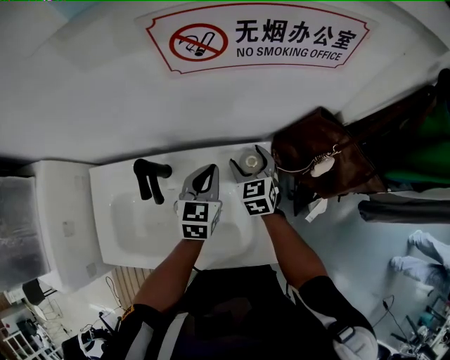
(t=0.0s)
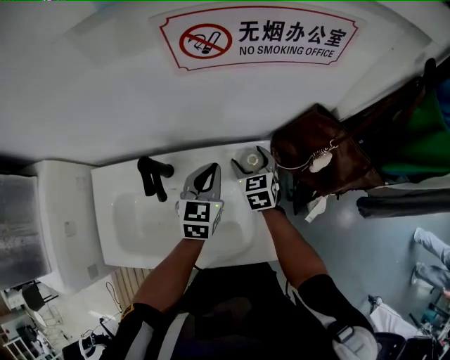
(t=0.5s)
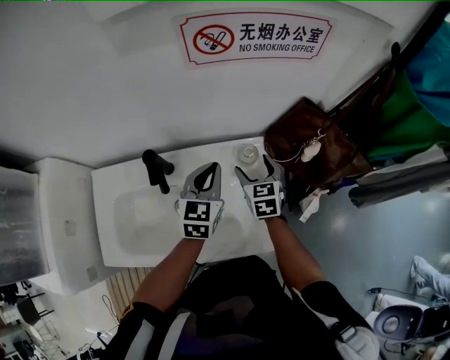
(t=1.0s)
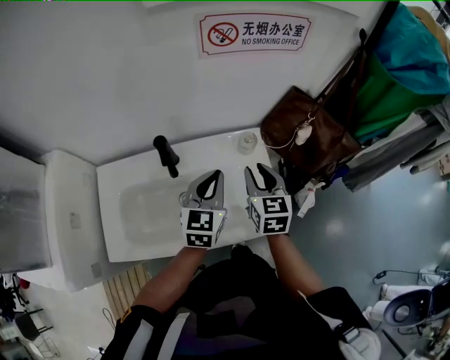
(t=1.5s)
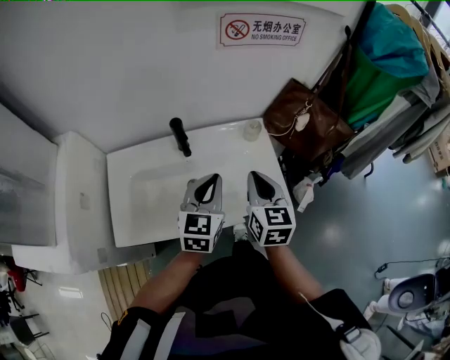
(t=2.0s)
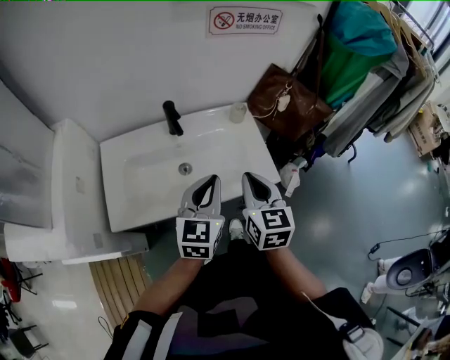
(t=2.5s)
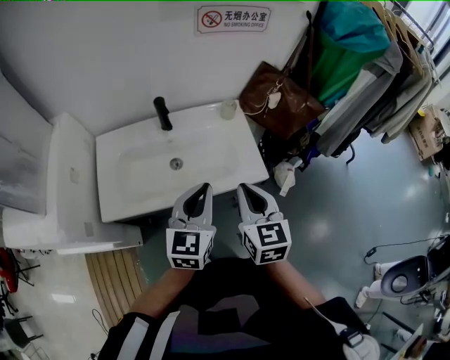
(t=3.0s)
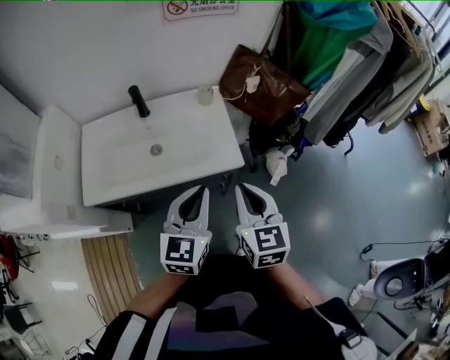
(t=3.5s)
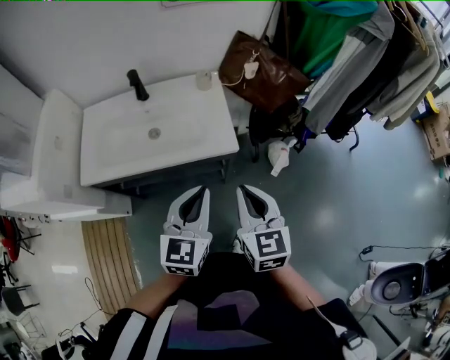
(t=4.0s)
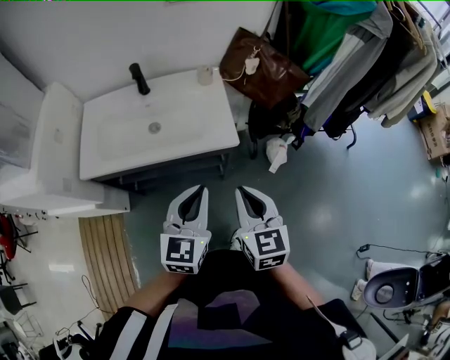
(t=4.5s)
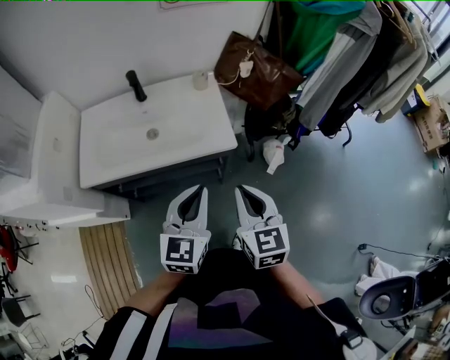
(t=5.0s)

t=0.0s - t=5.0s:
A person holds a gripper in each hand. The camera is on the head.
t=0.0s - t=2.5s: The two grippers go about 40 cm backward and upward. The left gripper swivels roughly 20 degrees, while the right gripper changes its angle by roughly 20 degrees, and closes up.
t=2.5s - t=5.0s: The left gripper heads to the right and backward, covering about 20 cm. The right gripper travels backward and to the right by roughly 25 cm.

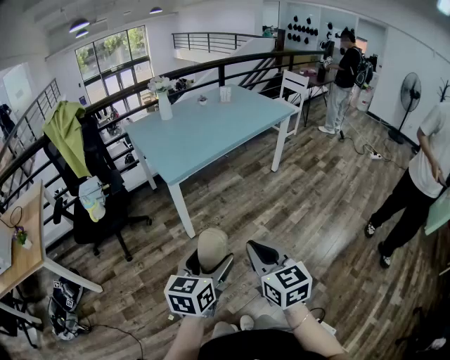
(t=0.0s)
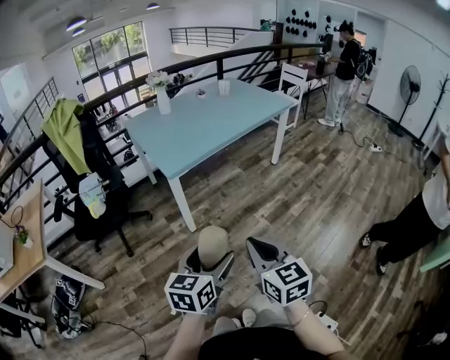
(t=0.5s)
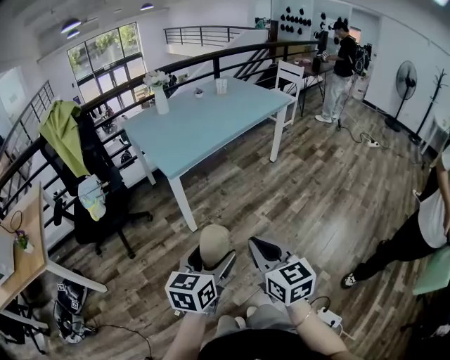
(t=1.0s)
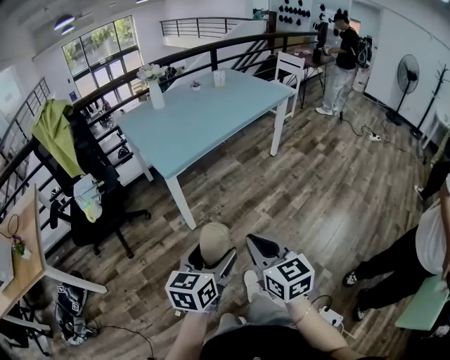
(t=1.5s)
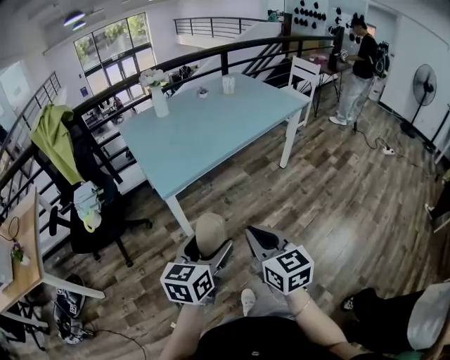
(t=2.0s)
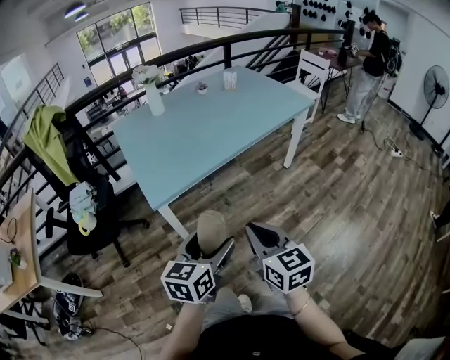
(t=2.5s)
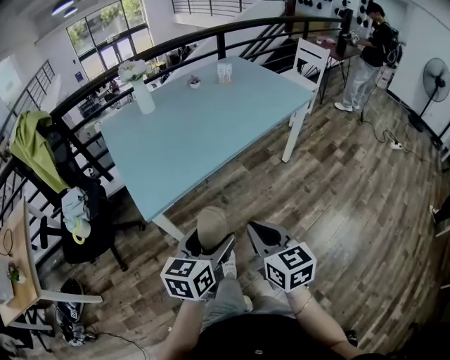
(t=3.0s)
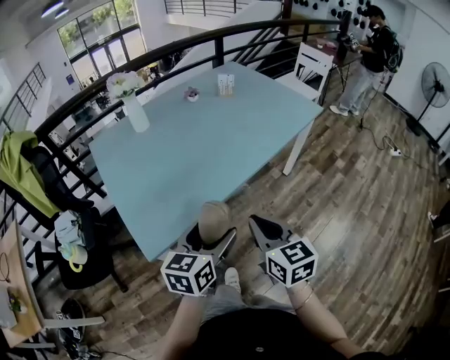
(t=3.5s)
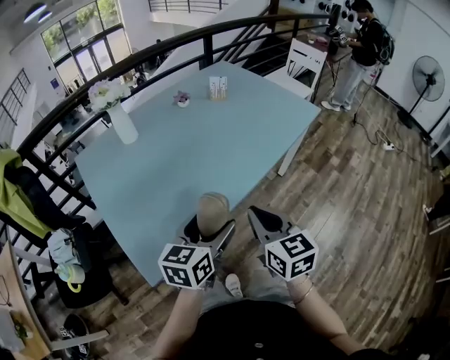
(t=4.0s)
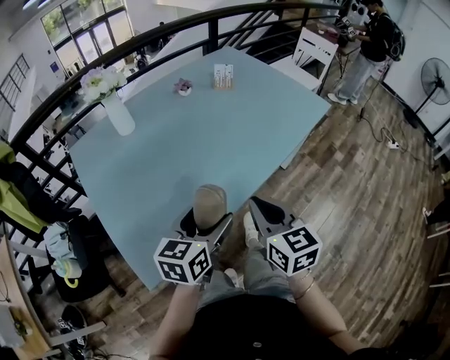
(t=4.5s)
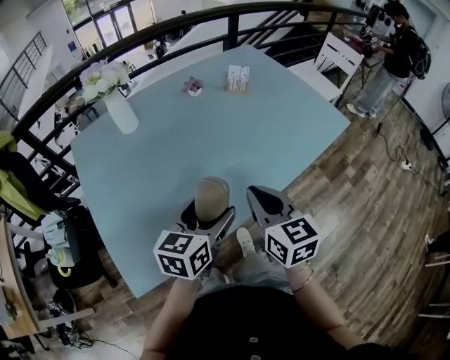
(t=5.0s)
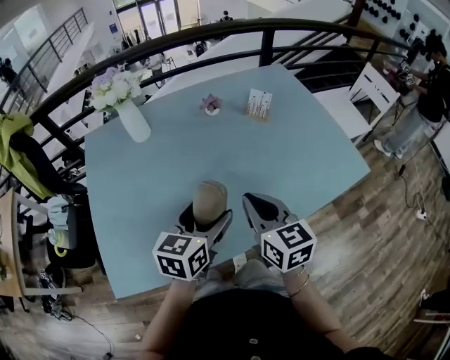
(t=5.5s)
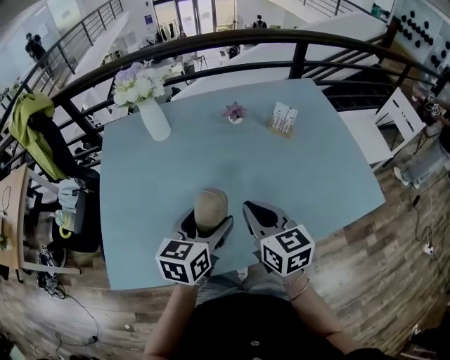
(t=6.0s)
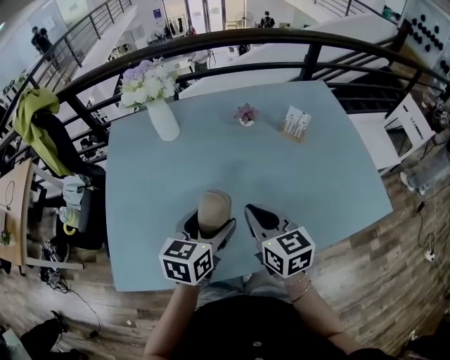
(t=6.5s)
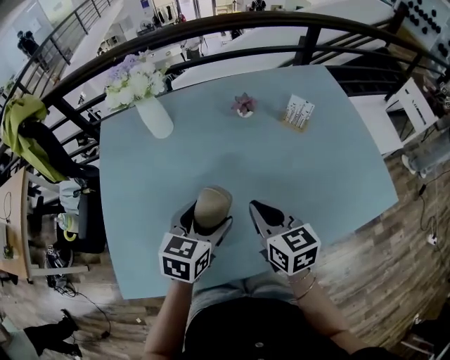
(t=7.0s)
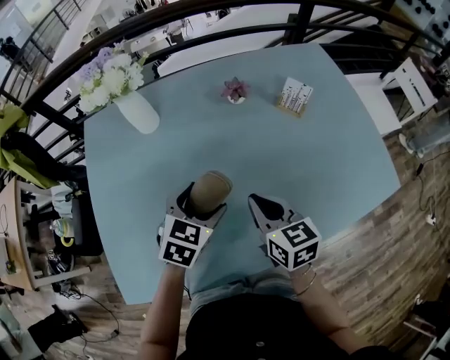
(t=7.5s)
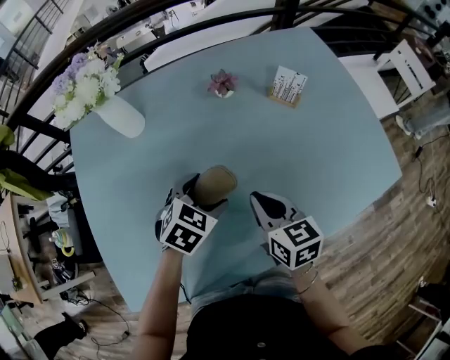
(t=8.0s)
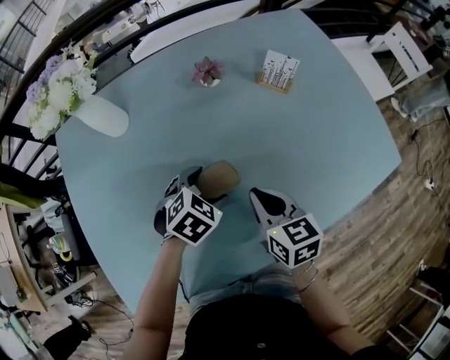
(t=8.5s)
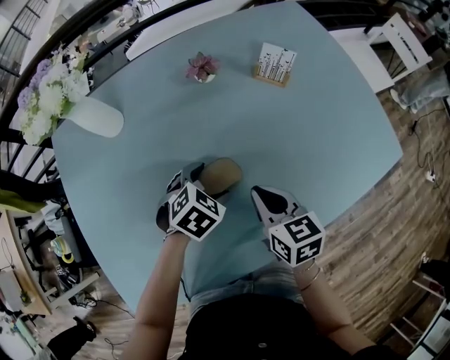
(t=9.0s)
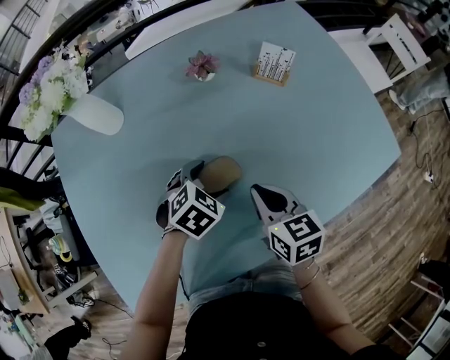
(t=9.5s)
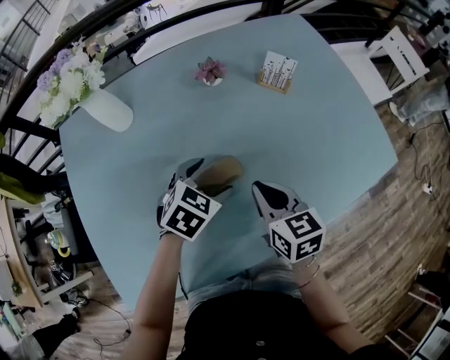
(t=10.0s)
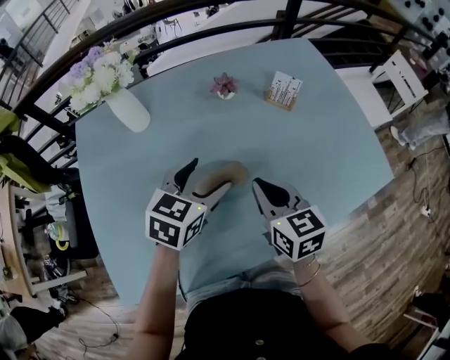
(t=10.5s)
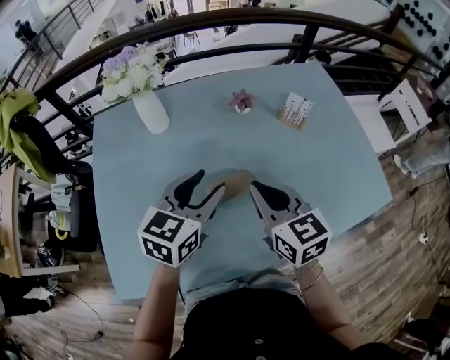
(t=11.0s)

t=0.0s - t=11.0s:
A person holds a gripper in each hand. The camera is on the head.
t=0.0s - t=2.0s: The grippers both shift forward by roughly 20 cm.
t=2.0s - t=3.5s: Both grippers move forward, approximately 35 cm.
t=3.5s - t=5.5s: The two grippers go some 35 cm forward.
t=5.5s - t=7.5s: The left gripper shifts some 15 cm forward, downward and to the left, and swivels some 30 degrees. Meanwhile the right gripper is displaced forward and downward by some 15 cm.
t=7.5s - t=9.0s: The right gripper shifts some 5 cm downward. The left gripper is displaced downward and to the right by some 10 cm, and changes its angle by approximately 30 degrees.
t=9.0s - t=11.0s: The right gripper goes approximately 15 cm upward and to the left, and rotates some 20 degrees. Meanwhile the left gripper moves upward, approximately 20 cm, points its fingers about 40 degrees further upward, and closes its fingers.

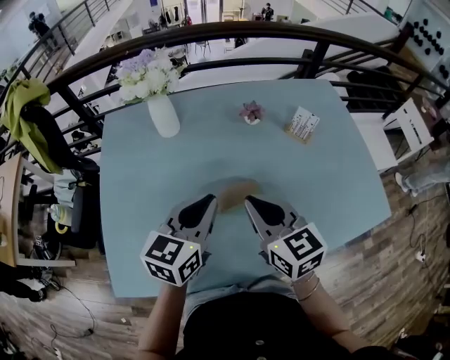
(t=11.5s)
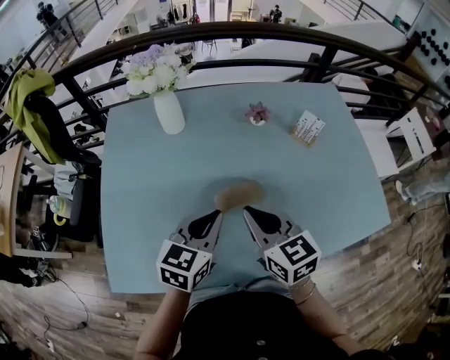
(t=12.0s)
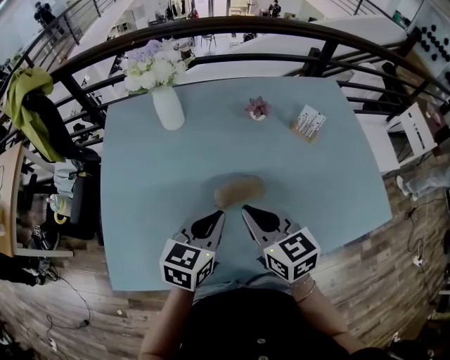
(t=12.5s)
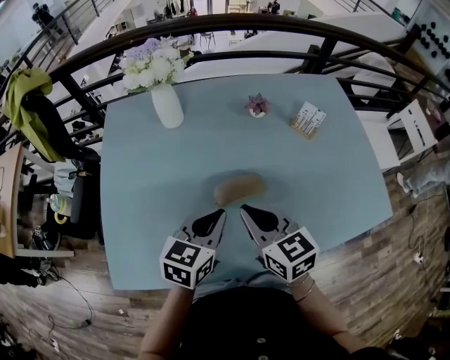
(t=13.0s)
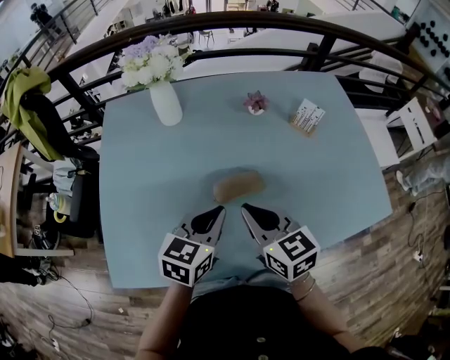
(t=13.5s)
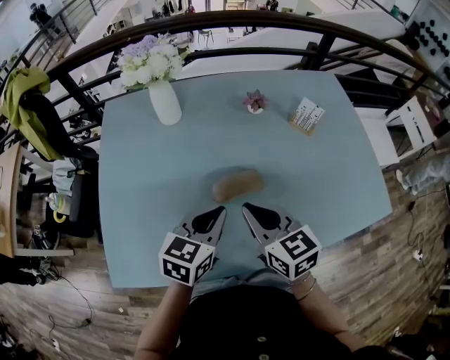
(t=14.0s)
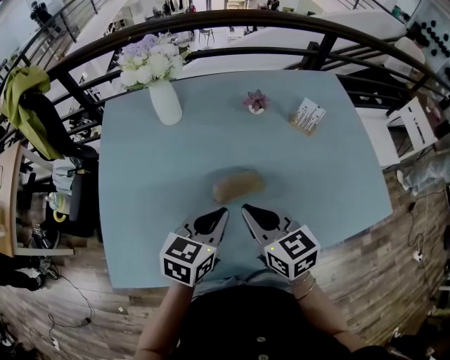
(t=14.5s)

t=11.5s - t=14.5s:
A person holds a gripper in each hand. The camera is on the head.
t=11.5s - t=13.0s: The right gripper shifts by roughly 5 cm; the left gripper heads downward, covering some 5 cm.
t=13.0s - t=14.5s: Neither gripper changes place.

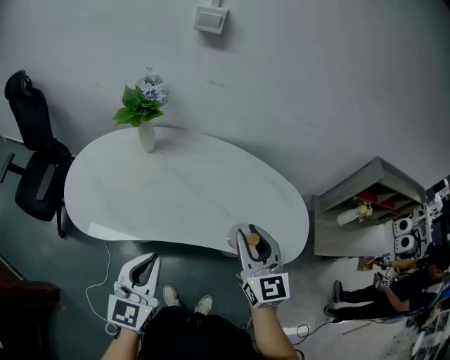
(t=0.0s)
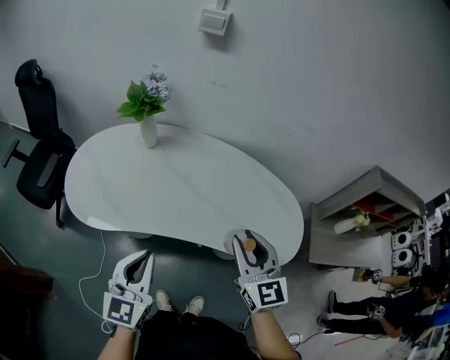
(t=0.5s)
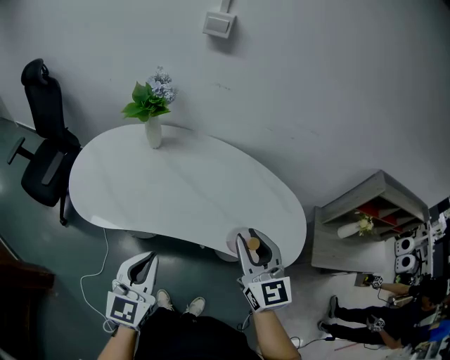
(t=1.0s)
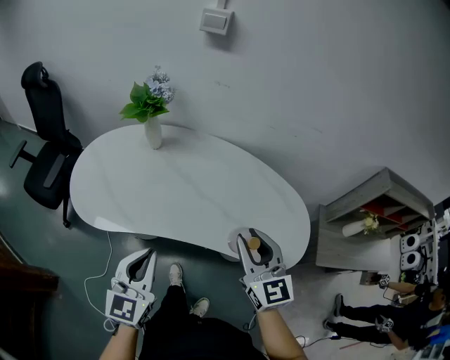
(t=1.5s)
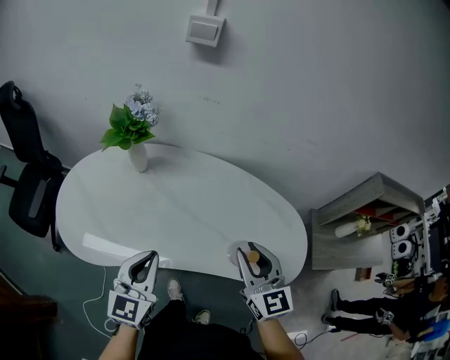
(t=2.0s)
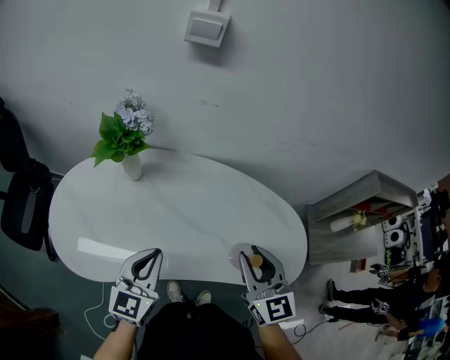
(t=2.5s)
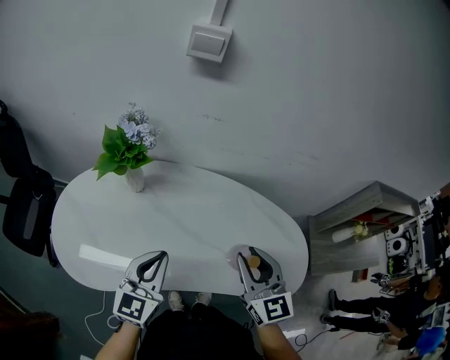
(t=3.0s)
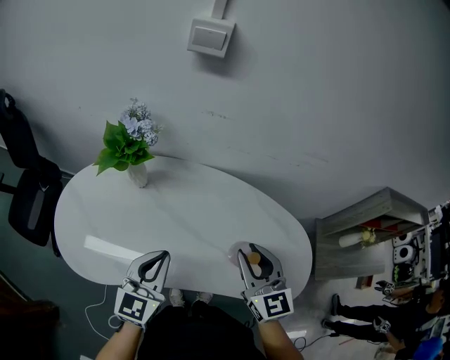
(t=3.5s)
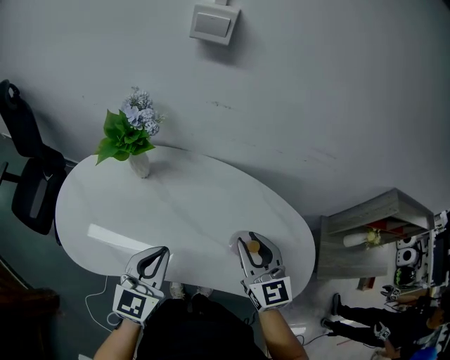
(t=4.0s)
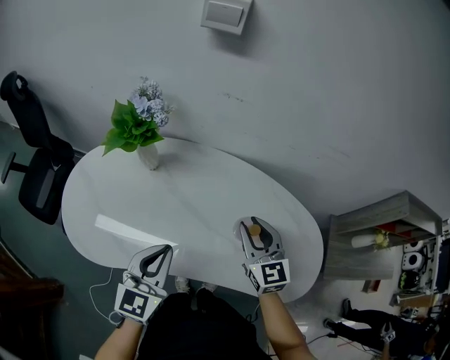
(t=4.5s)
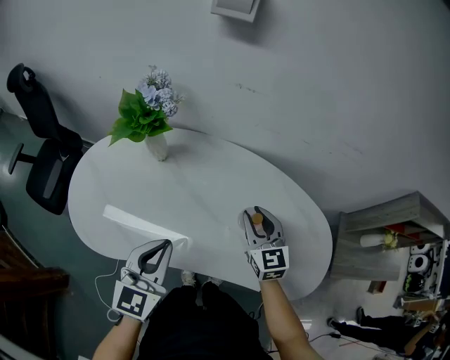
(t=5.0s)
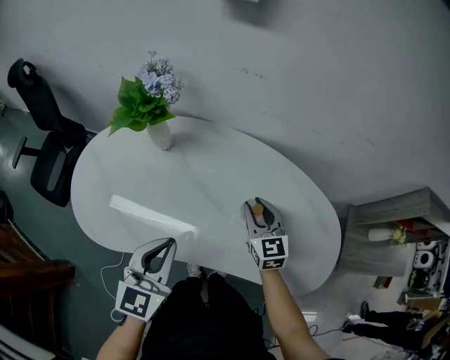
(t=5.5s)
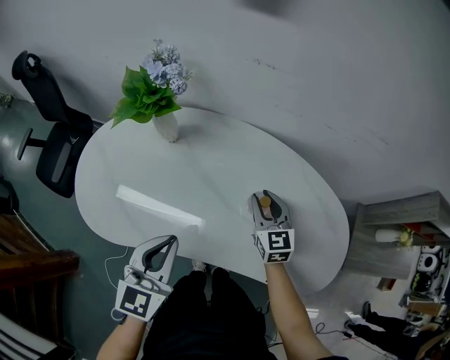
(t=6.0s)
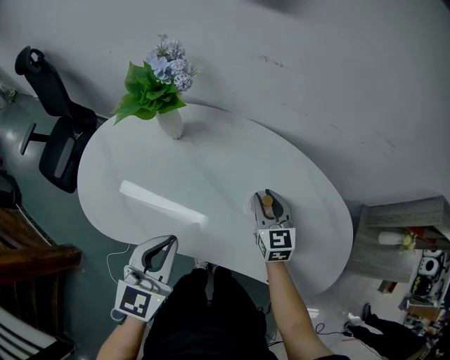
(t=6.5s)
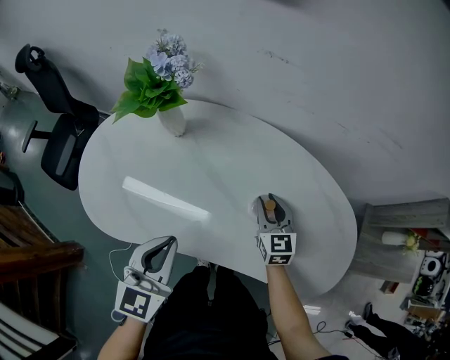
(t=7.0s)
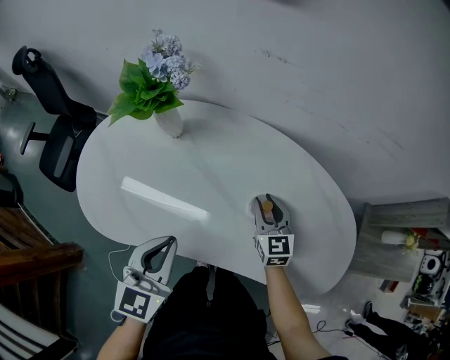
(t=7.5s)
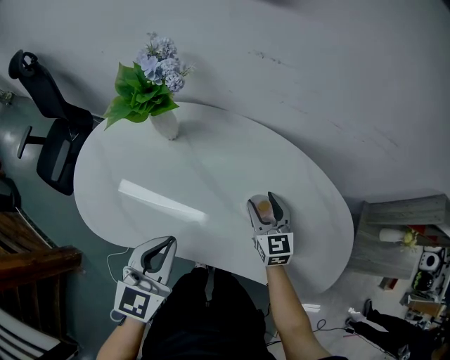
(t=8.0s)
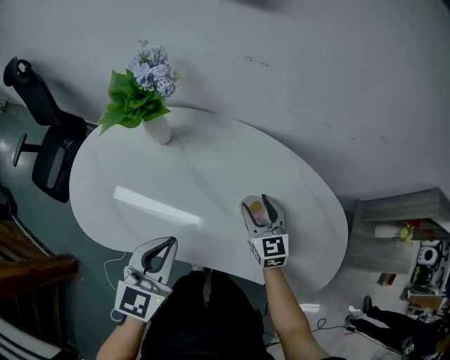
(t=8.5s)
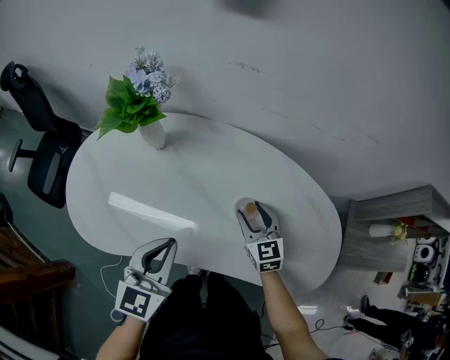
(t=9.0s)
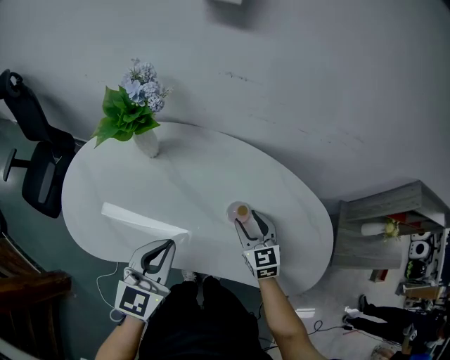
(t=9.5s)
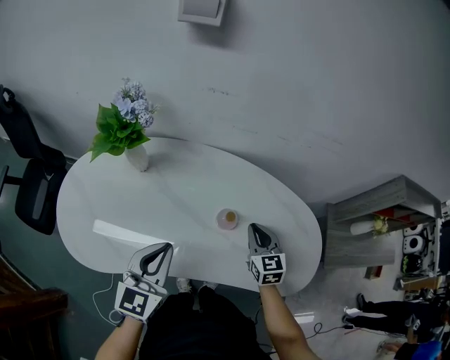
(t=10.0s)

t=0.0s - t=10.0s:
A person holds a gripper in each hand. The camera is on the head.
t=0.0s - t=2.0s: The right gripper changes place by approximately 5 cm. Meanwhile the left gripper moves forward, about 10 cm.
t=2.0s - t=4.0s: The grippers both shift forward by roughly 10 cm.
t=4.0s - t=6.0s: The right gripper travels downward and forward by some 20 cm.
t=6.0s - t=8.0s: The right gripper opens up.
t=8.0s - t=10.0s: The right gripper is displaced to the right and backward by some 10 cm, and closes up.
